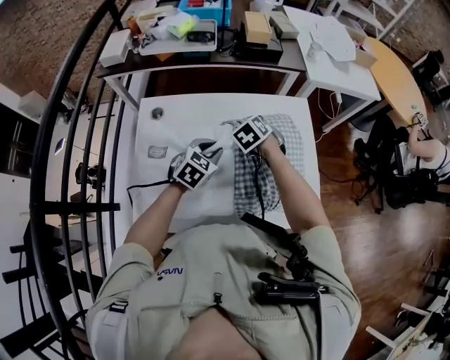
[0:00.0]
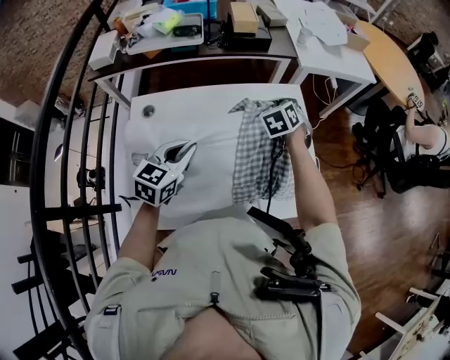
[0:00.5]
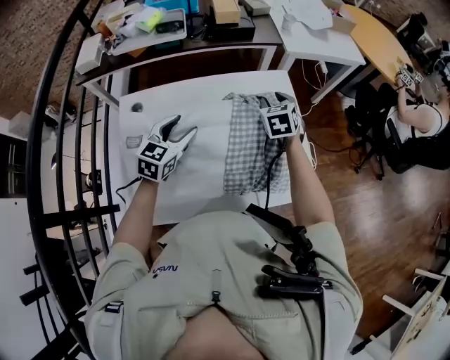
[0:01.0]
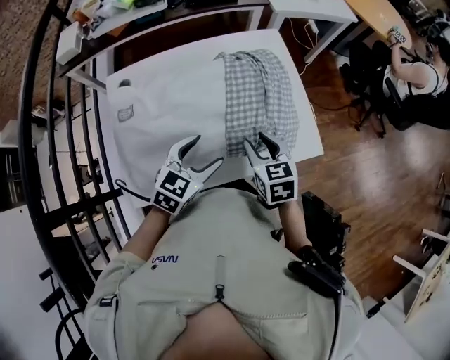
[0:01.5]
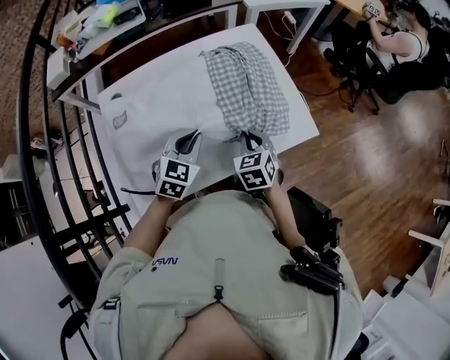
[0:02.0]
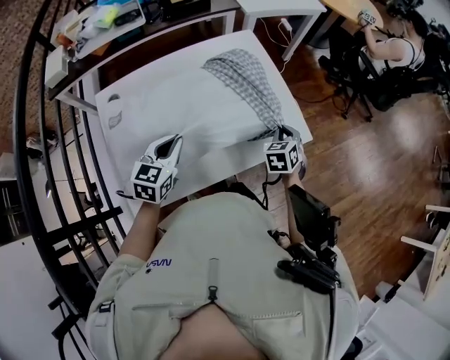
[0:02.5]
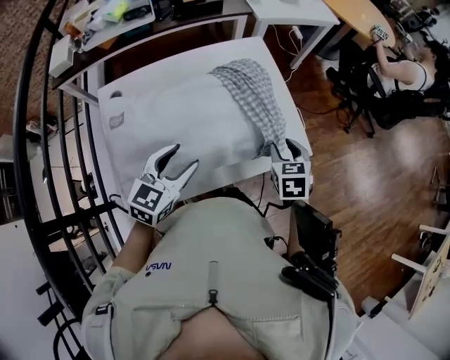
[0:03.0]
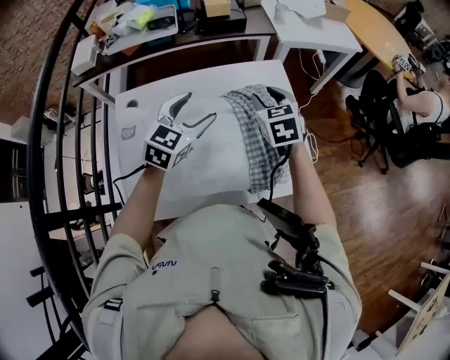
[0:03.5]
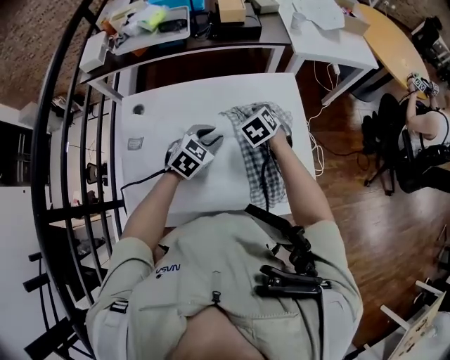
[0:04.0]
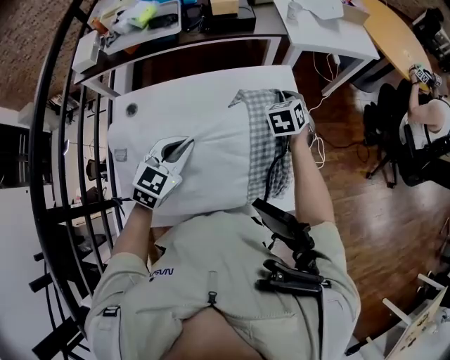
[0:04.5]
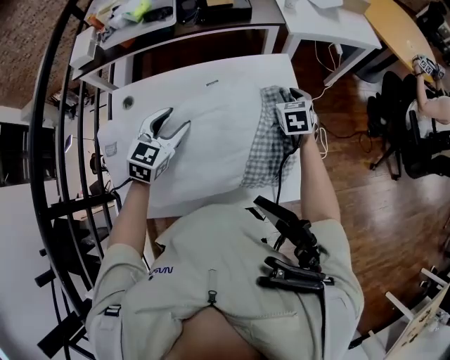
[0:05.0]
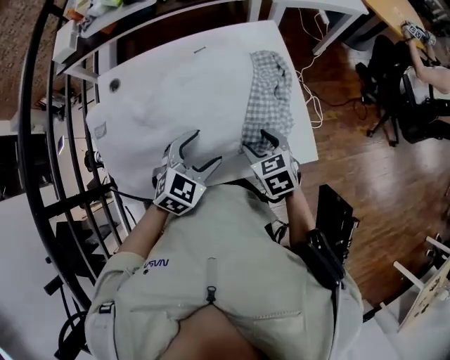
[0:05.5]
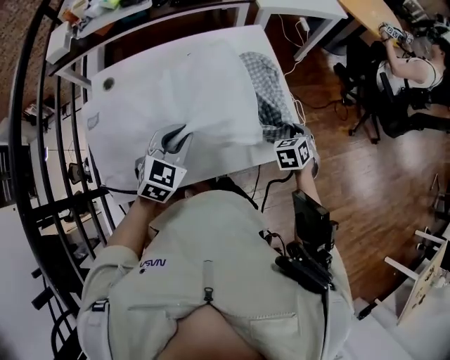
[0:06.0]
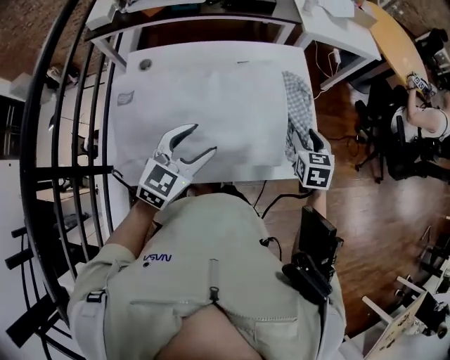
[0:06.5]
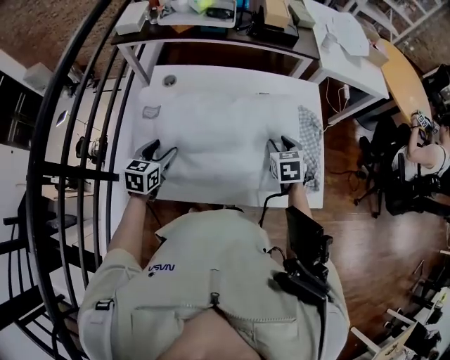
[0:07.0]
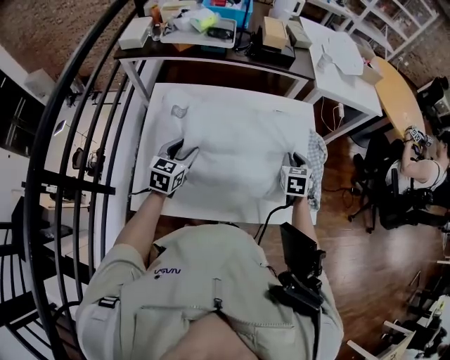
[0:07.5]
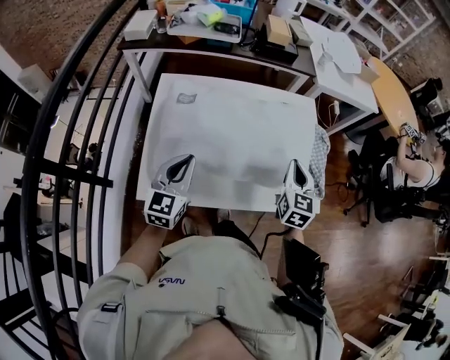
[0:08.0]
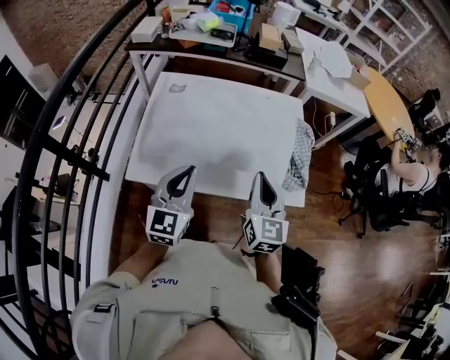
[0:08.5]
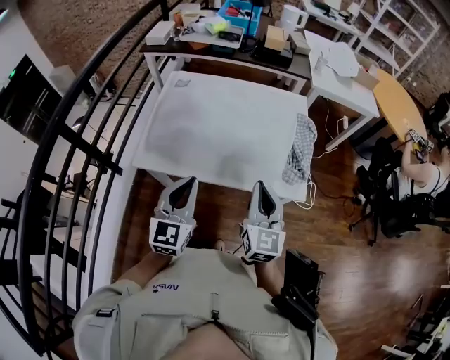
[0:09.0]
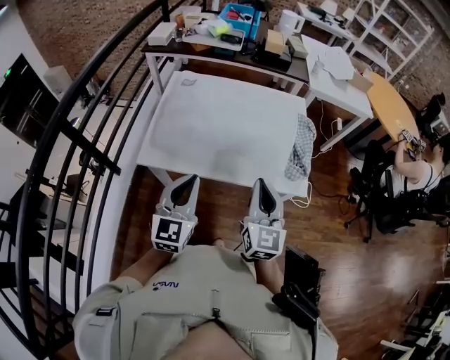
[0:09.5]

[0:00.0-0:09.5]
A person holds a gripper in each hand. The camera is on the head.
0:00.0 to 0:02.0: The left gripper swings forward and backward, approximately 15 cm each way, with 2 reversals, and opens, then closes once more; the right gripper heads backward and to the right, covering roughly 25 cm, turns by some 40 degrees, and opens, then closes once more.
0:02.0 to 0:04.0: The left gripper heads forward, covering roughly 15 cm, and opens, then closes again; the right gripper is displaced forward by some 25 cm, swivels about 30 degrees, and opens its fingers.
0:04.0 to 0:05.5: The left gripper moves forward and backward over some 15 cm, changing direction 2 times, and opens its fingers. The right gripper travels backward and to the right by about 25 cm, swivels about 20 degrees, and opens its fingers.
0:05.5 to 0:07.5: The left gripper goes upward and returns, about 10 cm each way, changes its angle by about 40 degrees, and closes. The right gripper travels upward and back again, approximately 5 cm each way, turns by some 20 degrees, and closes.
0:07.5 to 0:09.5: The two grippers go approximately 35 cm backward and upward. The left gripper turns by some 30 degrees, and closes its fingers; the right gripper tips its fingers upward by some 40 degrees.

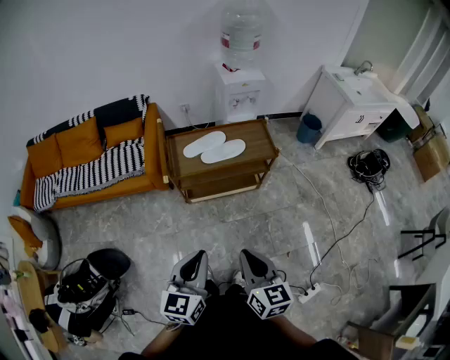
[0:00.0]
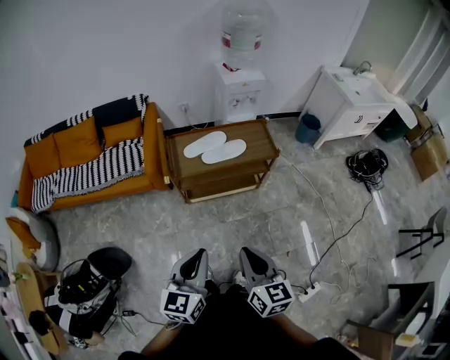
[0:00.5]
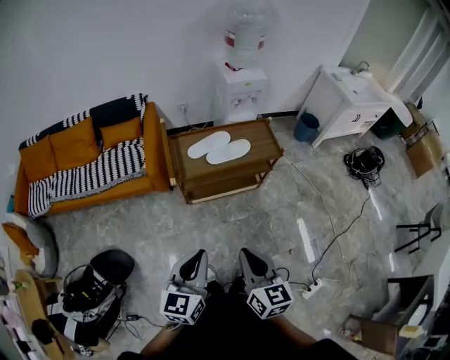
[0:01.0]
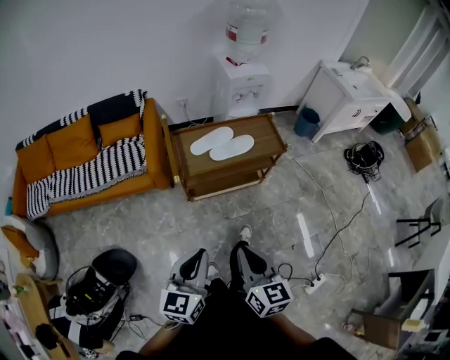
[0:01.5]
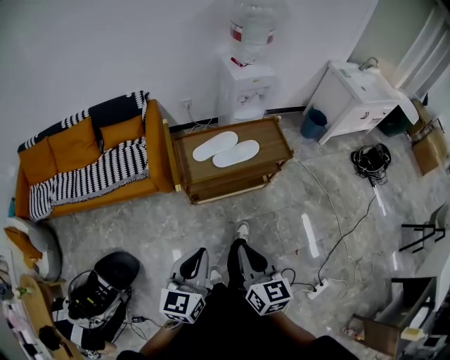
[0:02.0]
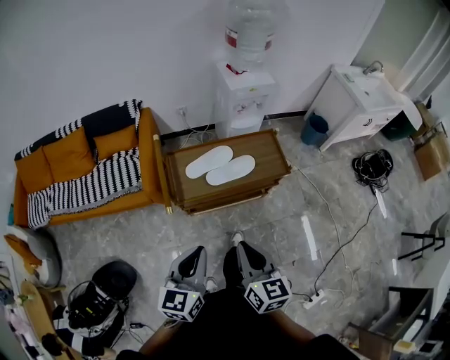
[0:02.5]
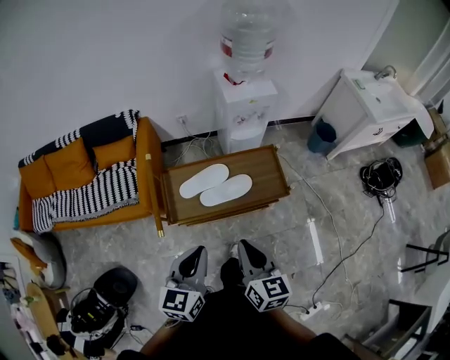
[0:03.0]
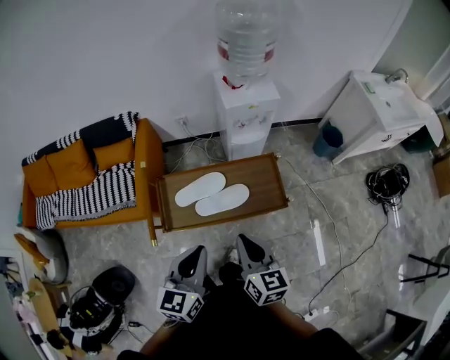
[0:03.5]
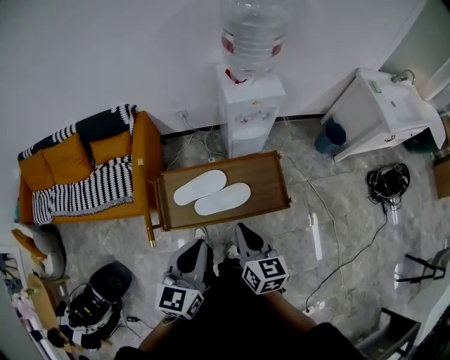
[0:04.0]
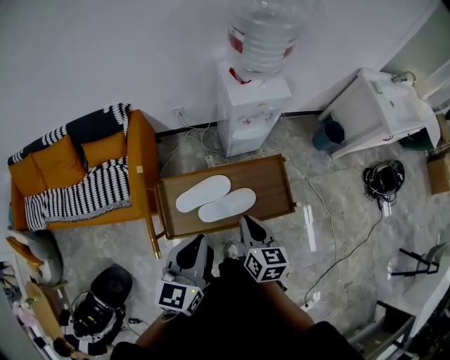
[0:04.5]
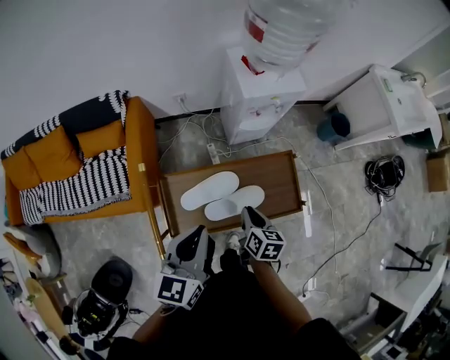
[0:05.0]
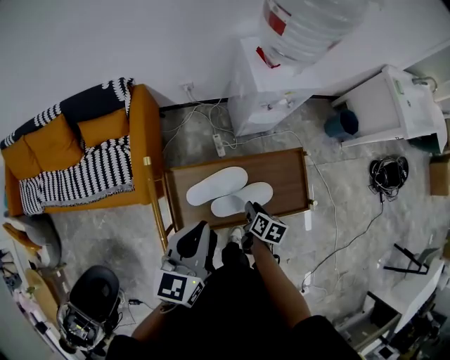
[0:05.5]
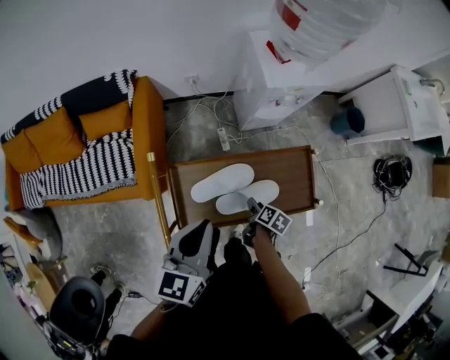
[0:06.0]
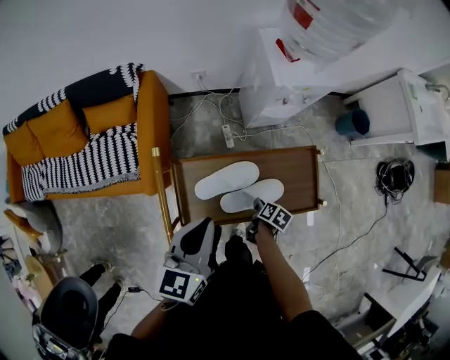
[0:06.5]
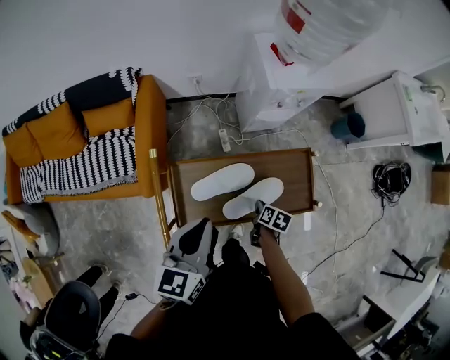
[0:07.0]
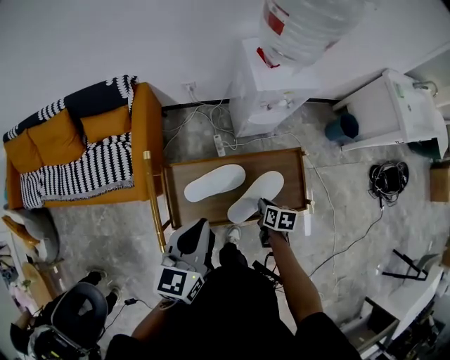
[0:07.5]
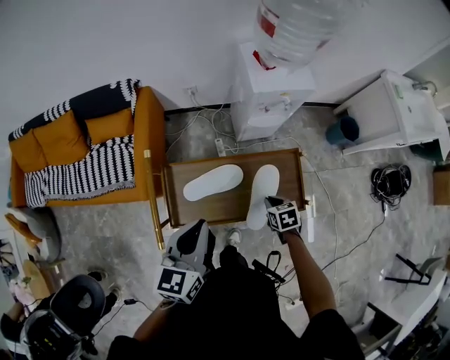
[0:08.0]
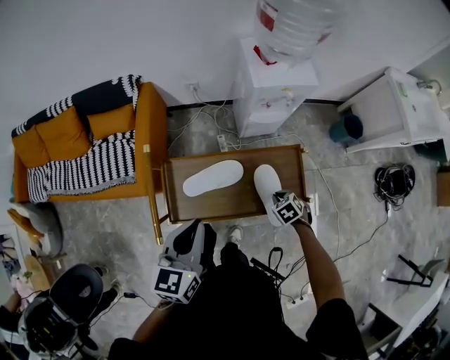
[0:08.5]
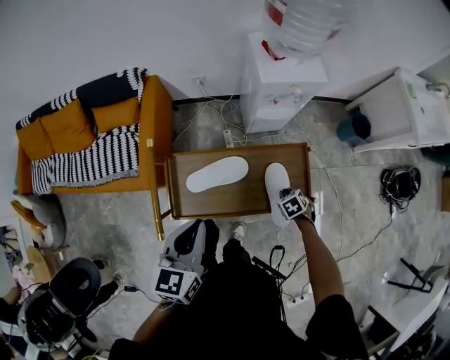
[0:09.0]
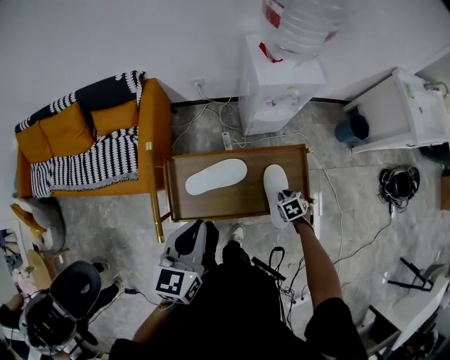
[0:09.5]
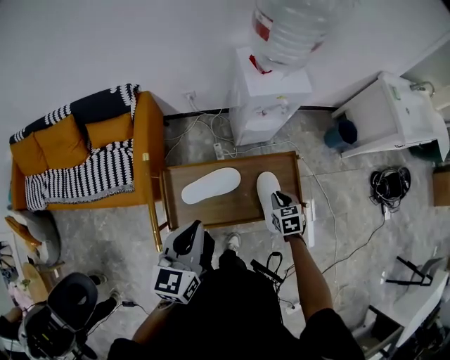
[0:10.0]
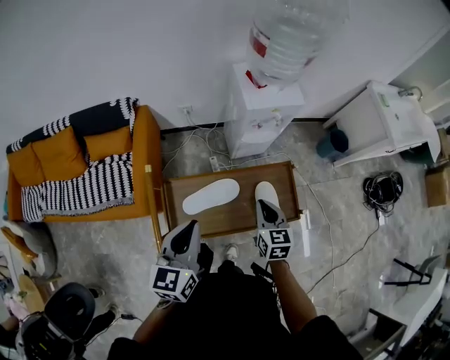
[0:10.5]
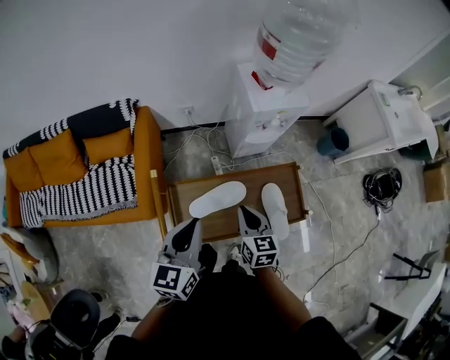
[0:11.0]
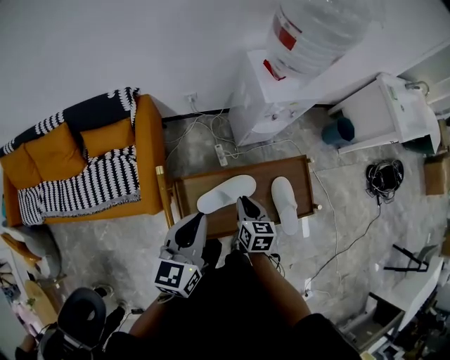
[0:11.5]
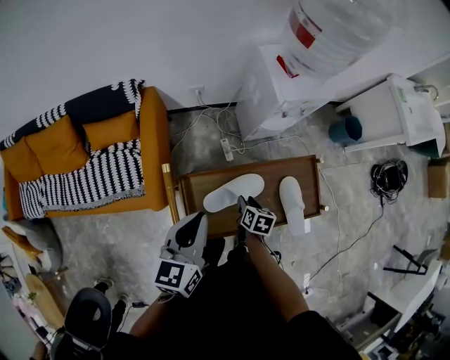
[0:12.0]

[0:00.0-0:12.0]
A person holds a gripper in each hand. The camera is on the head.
0:00.0 to 0:02.0: Both grippers move to the left and forward, approximately 15 cm.
0:02.0 to 0:04.0: The right gripper heads forward, covering roughly 40 cm. Meanwhile the left gripper heads forward and to the right, covering approximately 40 cm.
0:04.0 to 0:06.0: The right gripper is displaced downward by approximately 30 cm, tilts its fingers approximately 40 degrees downward, and opens. Meanwhile the left gripper goes about 20 cm forward and to the left.
0:06.0 to 0:08.0: The right gripper moves to the right and upward, approximately 10 cm, rotates around the line of its fingers by about 60 degrees, counterclockwise from behind, and closes its fingers. The left gripper ends up approximately 5 cm from where it was.
0:08.0 to 0:10.0: The right gripper moves some 10 cm downward and comes back.
0:10.0 to 0:12.0: The left gripper shifts approximately 15 cm to the left and forward. The right gripper travels to the left by approximately 20 cm, and rotates approximately 40 degrees.

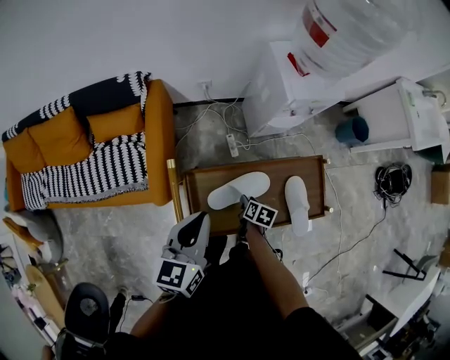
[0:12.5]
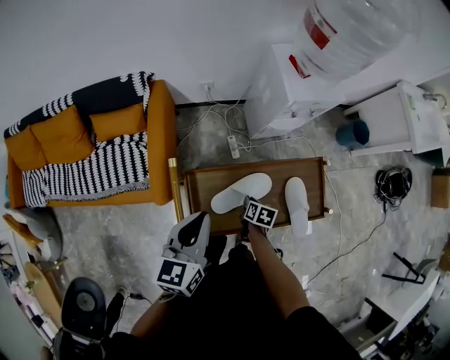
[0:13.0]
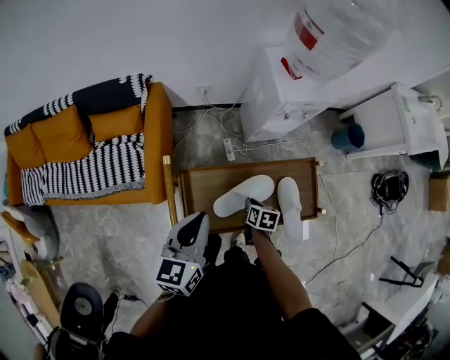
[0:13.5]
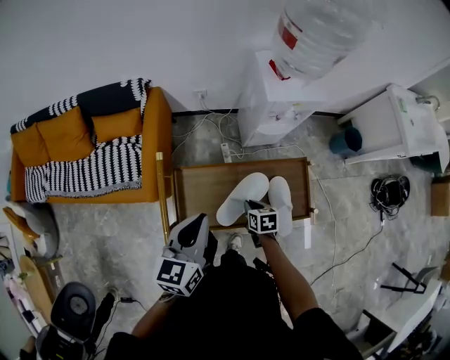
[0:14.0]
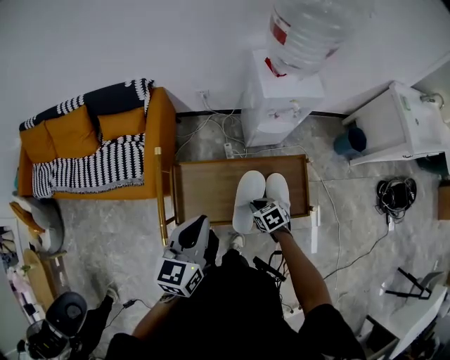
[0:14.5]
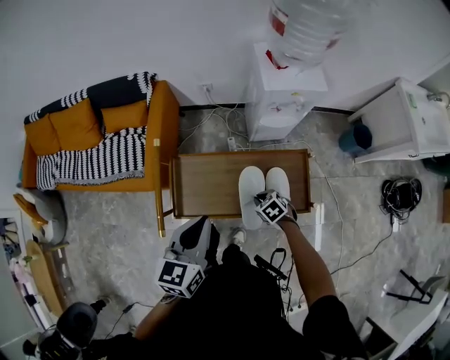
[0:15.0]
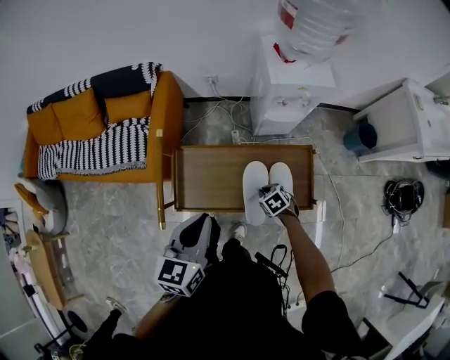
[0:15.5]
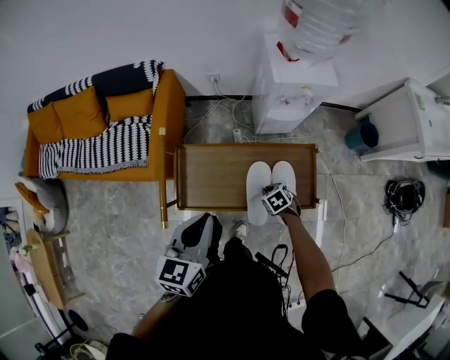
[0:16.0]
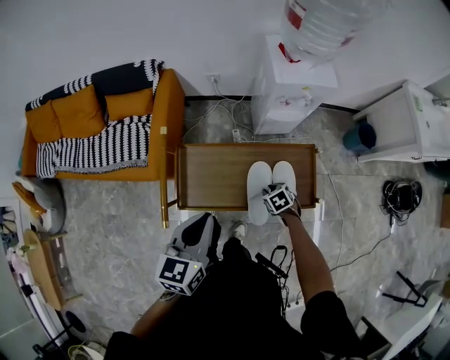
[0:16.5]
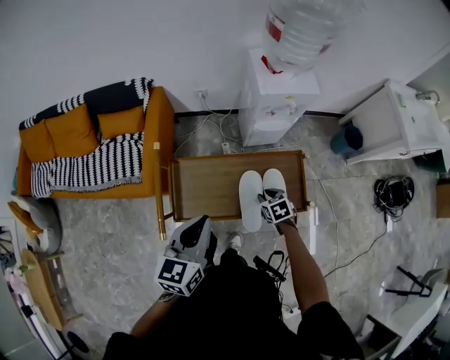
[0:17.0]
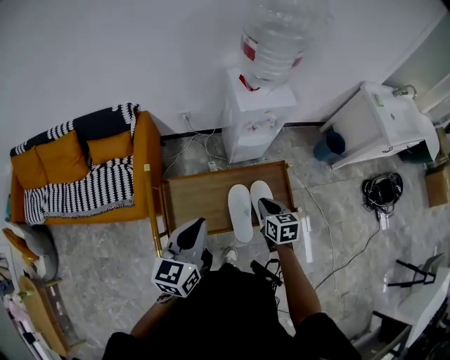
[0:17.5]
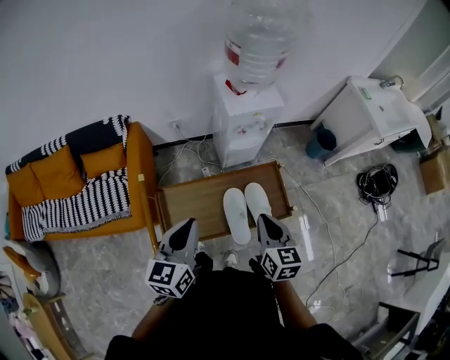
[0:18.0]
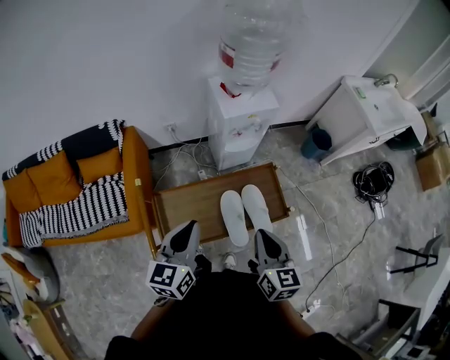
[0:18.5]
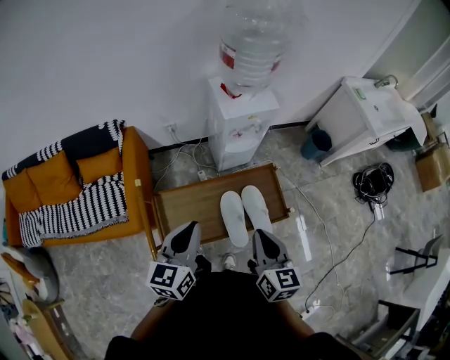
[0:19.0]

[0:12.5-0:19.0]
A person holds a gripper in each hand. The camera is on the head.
0:12.5 to 0:14.5: The right gripper goes roughly 15 cm to the right, upward and backward, rolls counterclockwise, seen from behind, by about 50 degrees, and closes up. The left gripper travels to the right and backward by roughly 15 cm.
0:14.5 to 0:17.0: The right gripper is displaced to the right by roughly 5 cm.
0:17.0 to 0:19.0: The left gripper shifts by roughly 5 cm. The right gripper shifts about 30 cm upward, tips its fingers upward by roughly 40 degrees, and closes up.
